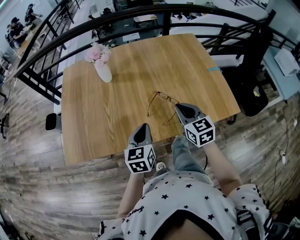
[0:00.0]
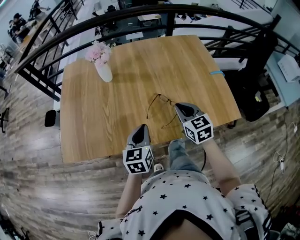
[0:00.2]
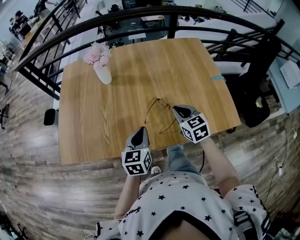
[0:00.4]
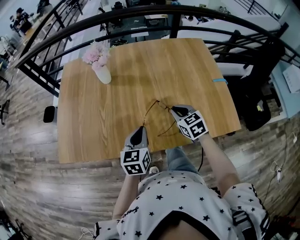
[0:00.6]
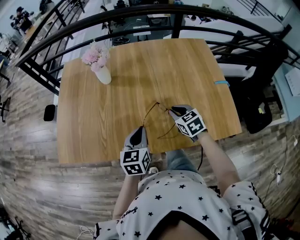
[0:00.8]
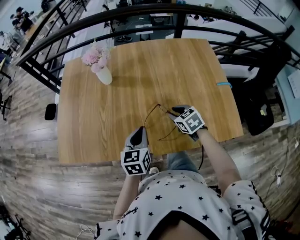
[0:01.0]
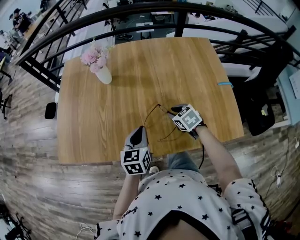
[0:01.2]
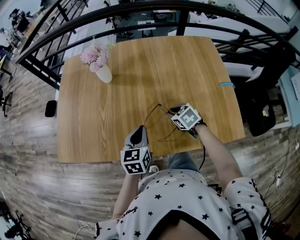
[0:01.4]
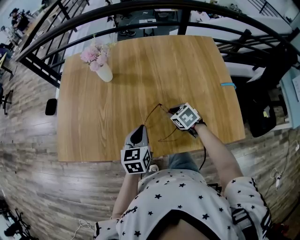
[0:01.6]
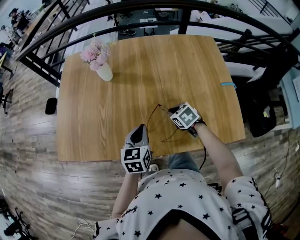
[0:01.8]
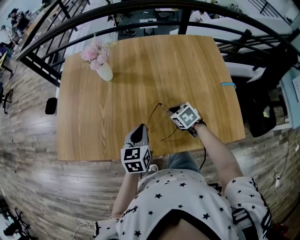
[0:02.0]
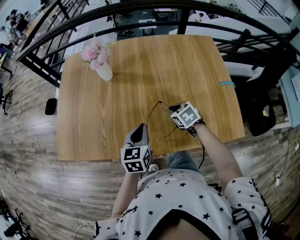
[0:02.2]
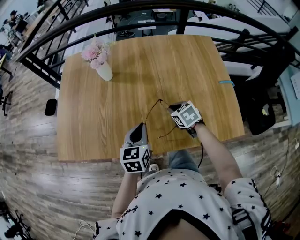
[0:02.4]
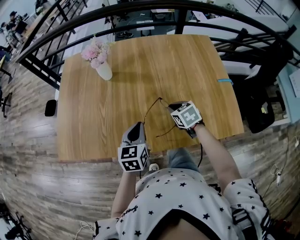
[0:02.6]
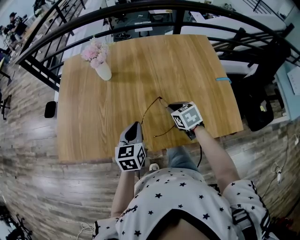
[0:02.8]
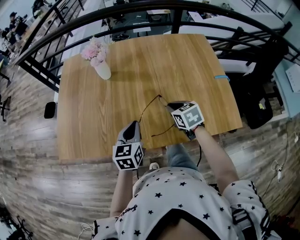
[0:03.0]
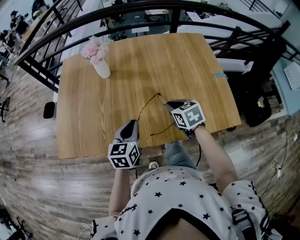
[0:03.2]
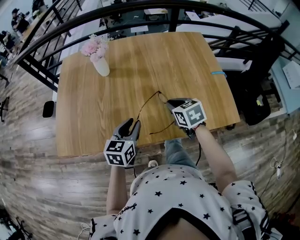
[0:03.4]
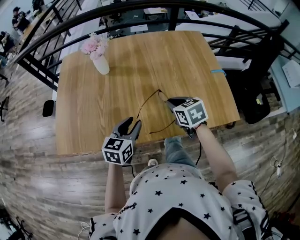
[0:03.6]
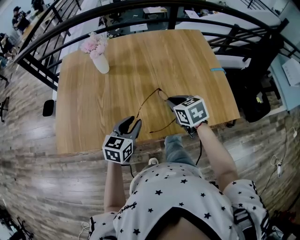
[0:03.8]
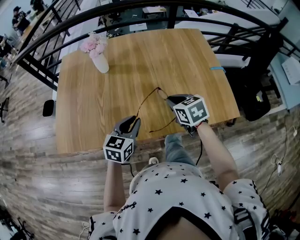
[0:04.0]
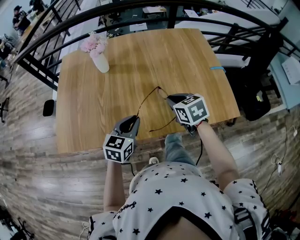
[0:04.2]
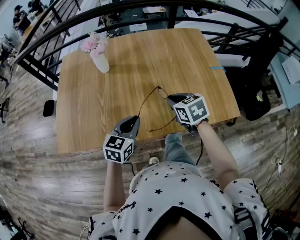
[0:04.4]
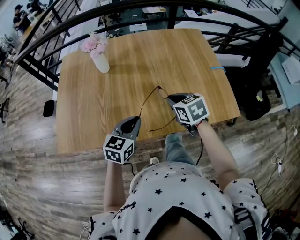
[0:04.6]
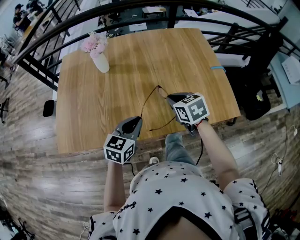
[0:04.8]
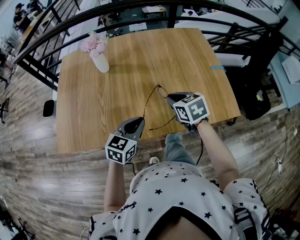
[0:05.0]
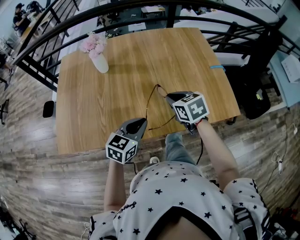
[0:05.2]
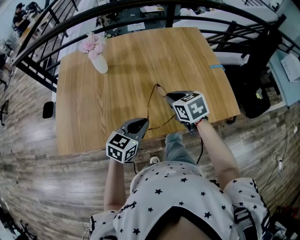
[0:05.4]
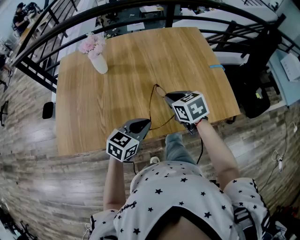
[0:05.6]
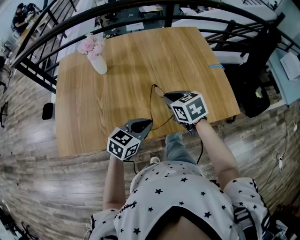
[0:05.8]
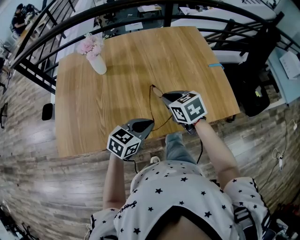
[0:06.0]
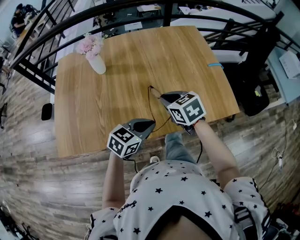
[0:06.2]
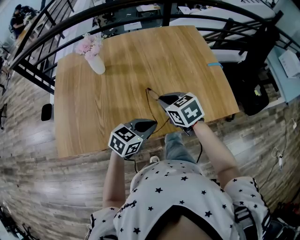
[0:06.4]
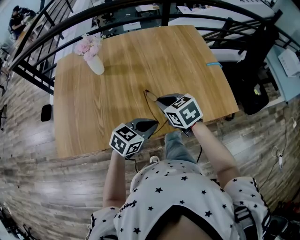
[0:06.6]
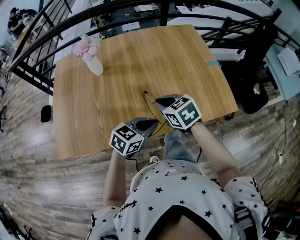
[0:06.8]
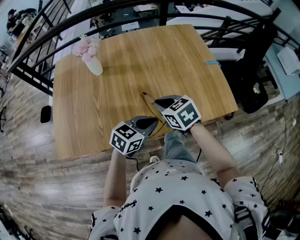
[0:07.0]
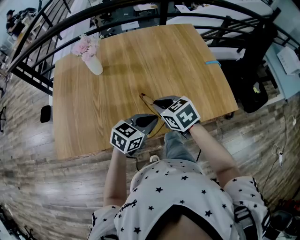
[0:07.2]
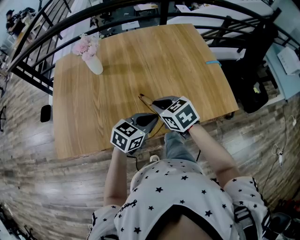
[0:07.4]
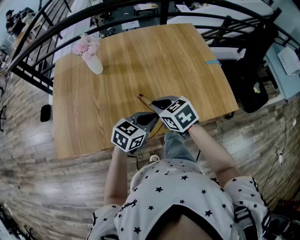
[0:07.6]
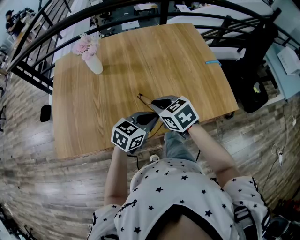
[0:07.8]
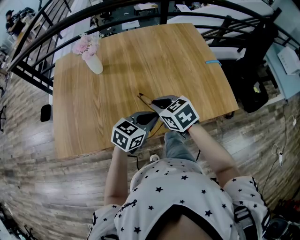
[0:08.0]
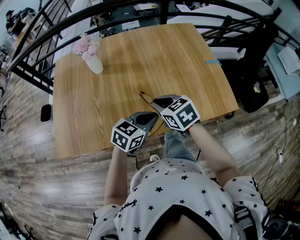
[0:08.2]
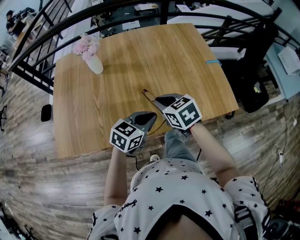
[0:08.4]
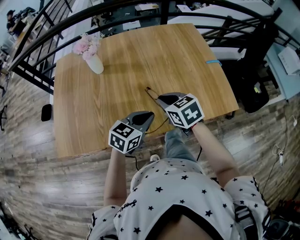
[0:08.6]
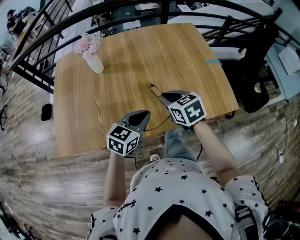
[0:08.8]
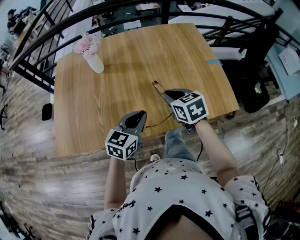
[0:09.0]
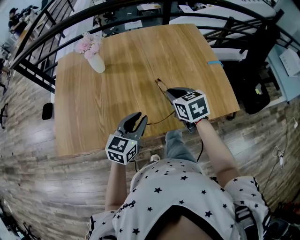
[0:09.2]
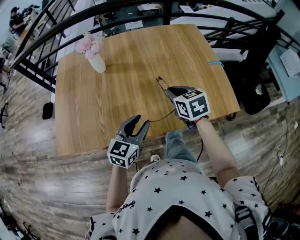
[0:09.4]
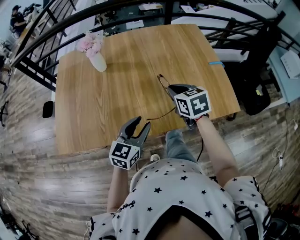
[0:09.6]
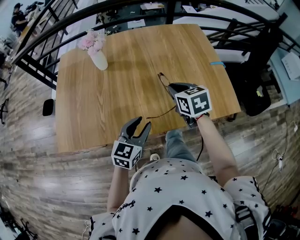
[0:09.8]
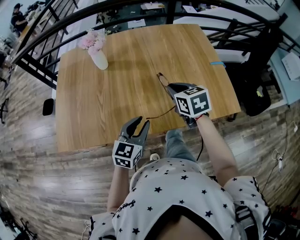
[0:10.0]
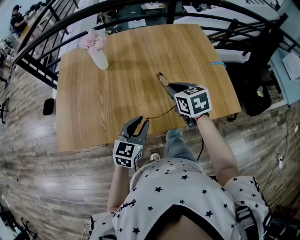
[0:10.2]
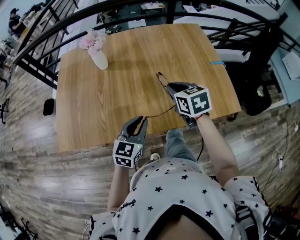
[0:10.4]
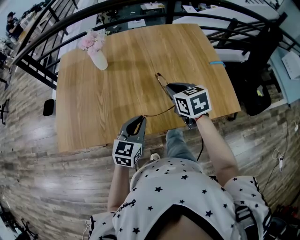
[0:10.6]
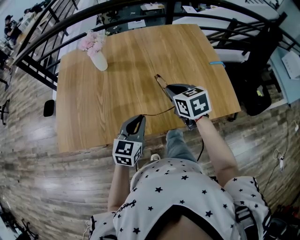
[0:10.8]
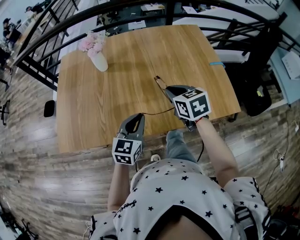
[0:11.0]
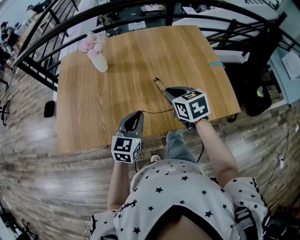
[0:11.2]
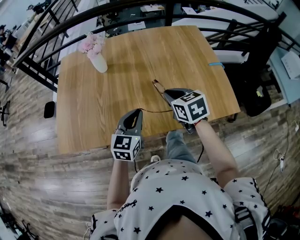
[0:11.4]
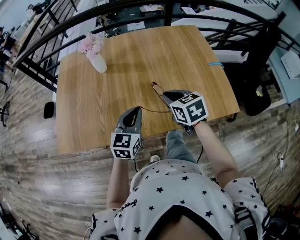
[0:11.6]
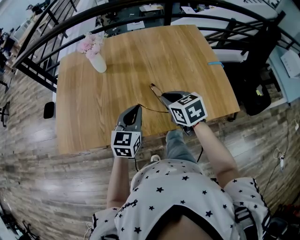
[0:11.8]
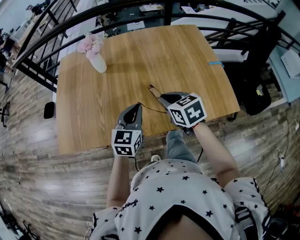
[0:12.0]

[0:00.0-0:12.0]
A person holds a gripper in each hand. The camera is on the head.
0:00.0 to 0:01.6: The right gripper is displaced downward and forward by about 20 cm, and angles its fingers downward, by approximately 30 degrees. Meanwhile the left gripper goes roughly 10 cm forward.
0:01.6 to 0:03.0: The right gripper goes some 10 cm upward.
0:03.0 to 0:04.4: The left gripper swivels approximately 20 degrees, and opens, then closes once more; the right gripper ends up approximately 5 cm from where it was.
0:04.4 to 0:06.0: The left gripper is displaced to the right by some 5 cm, and changes its angle by some 20 degrees.
0:06.0 to 0:07.6: The grippers move only a little.
0:07.6 to 0:09.0: The left gripper shifts some 5 cm to the left, while the right gripper travels to the right by some 5 cm.
0:09.0 to 0:10.4: The left gripper opens, then closes once more.
0:10.4 to 0:12.0: The left gripper moves forward, roughly 5 cm.

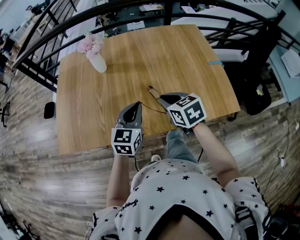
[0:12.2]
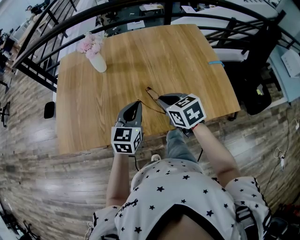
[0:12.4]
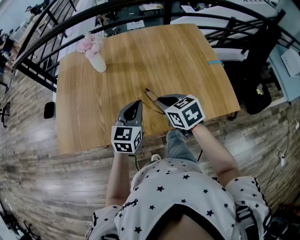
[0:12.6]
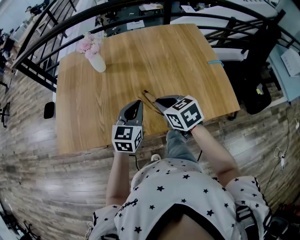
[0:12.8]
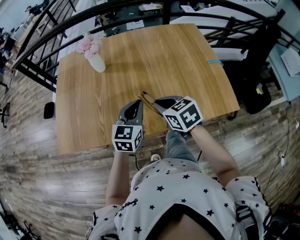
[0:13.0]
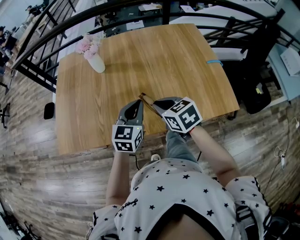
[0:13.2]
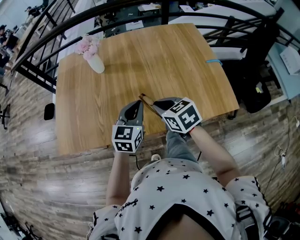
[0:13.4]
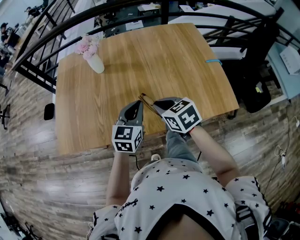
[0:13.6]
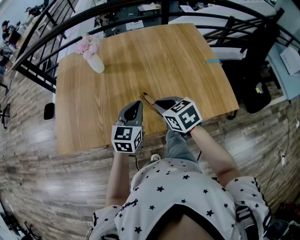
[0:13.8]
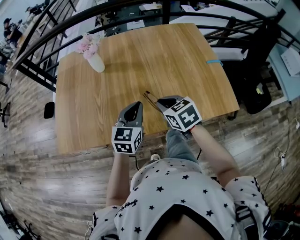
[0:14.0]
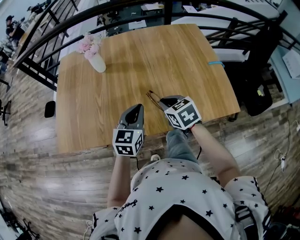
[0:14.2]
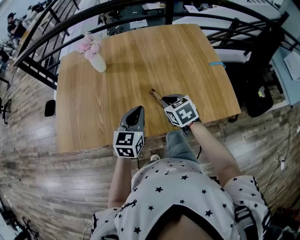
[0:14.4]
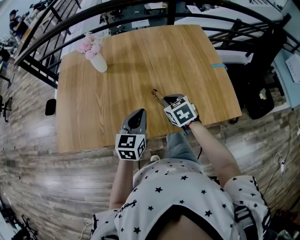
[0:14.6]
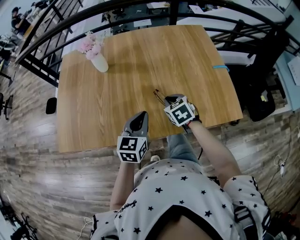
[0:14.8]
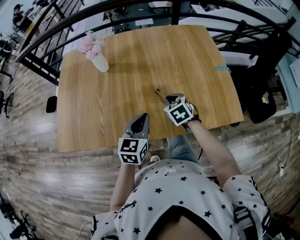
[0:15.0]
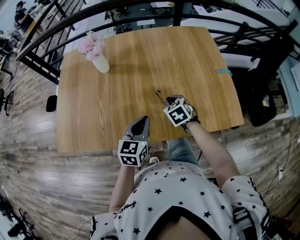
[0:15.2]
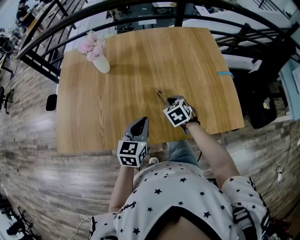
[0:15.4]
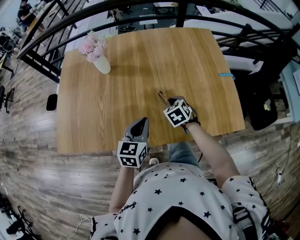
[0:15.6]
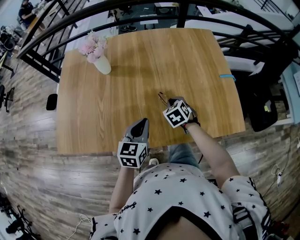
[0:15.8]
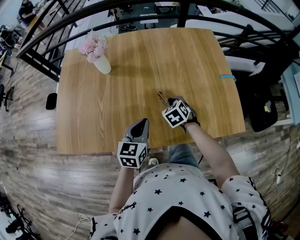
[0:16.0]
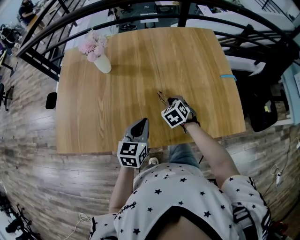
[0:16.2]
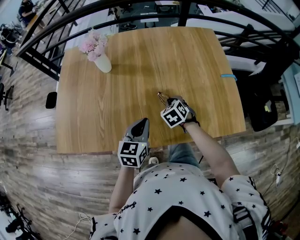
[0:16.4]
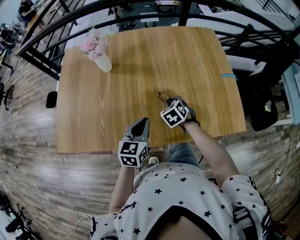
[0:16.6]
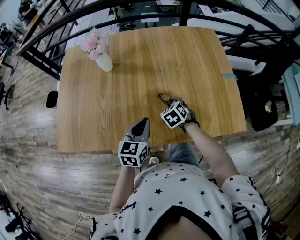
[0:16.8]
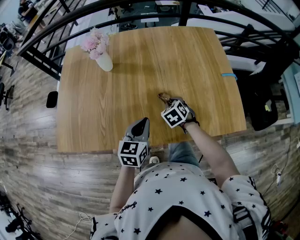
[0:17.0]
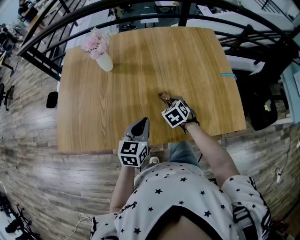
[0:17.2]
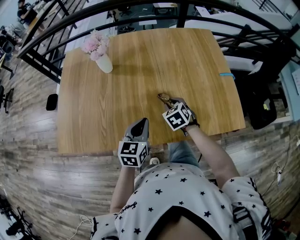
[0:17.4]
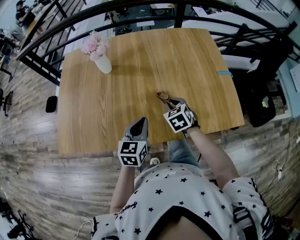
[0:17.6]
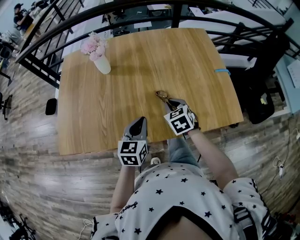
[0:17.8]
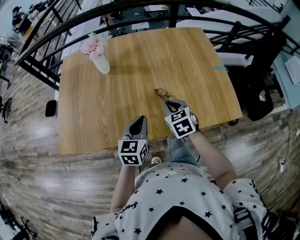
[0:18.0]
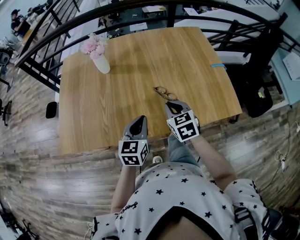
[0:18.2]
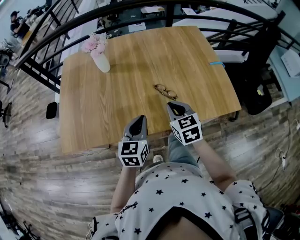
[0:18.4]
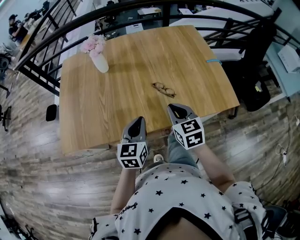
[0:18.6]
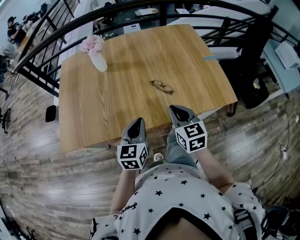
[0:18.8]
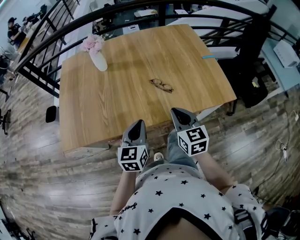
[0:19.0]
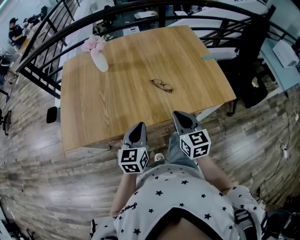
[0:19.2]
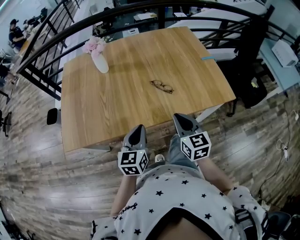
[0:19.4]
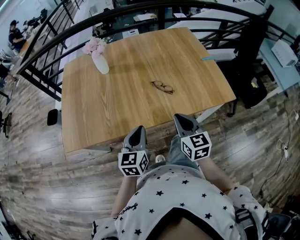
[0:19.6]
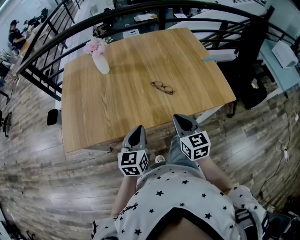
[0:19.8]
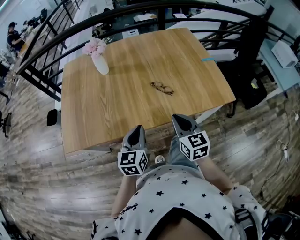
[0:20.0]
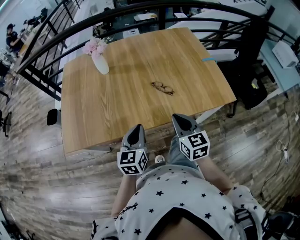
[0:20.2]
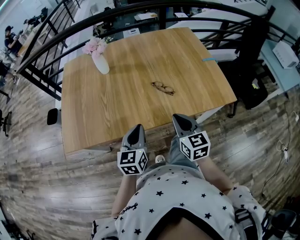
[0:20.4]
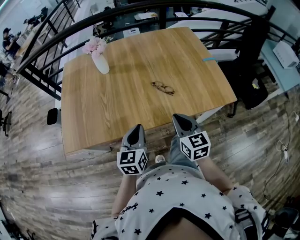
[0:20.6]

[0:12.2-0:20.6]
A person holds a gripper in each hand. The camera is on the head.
0:12.2 to 0:13.6: The grippers stay close to where they were, moving slightly.
0:13.6 to 0:15.0: The right gripper shifts about 15 cm downward, forward and to the right, and changes its angle by approximately 20 degrees.
0:15.0 to 0:16.4: The right gripper shifts by roughly 5 cm.
0:16.4 to 0:17.8: The right gripper heads upward and backward, covering some 10 cm.
0:17.8 to 0:19.2: The left gripper travels backward by some 10 cm. The right gripper travels backward and upward by about 20 cm, and turns by roughly 30 degrees.
0:19.2 to 0:20.6: The grippers stay close to where they were, moving slightly.

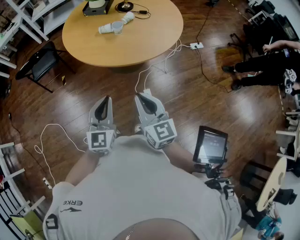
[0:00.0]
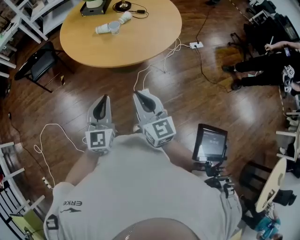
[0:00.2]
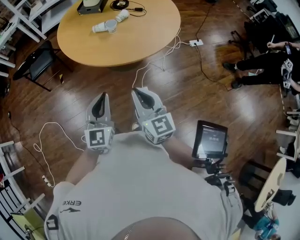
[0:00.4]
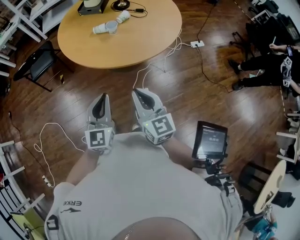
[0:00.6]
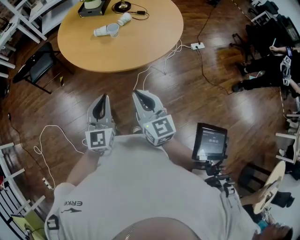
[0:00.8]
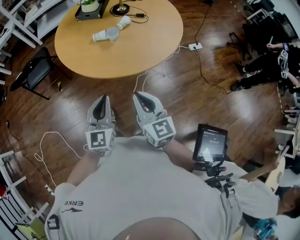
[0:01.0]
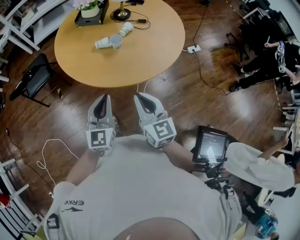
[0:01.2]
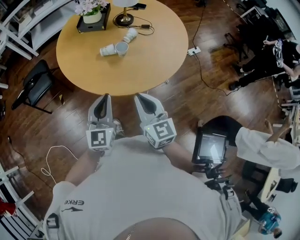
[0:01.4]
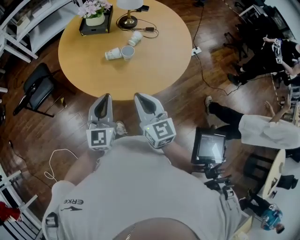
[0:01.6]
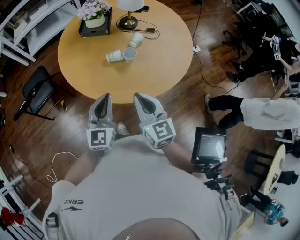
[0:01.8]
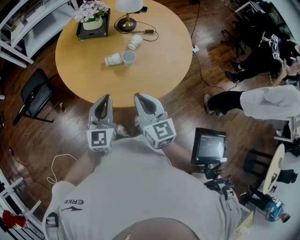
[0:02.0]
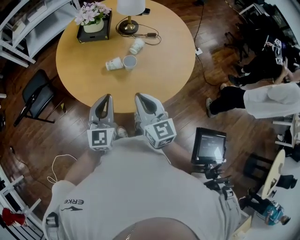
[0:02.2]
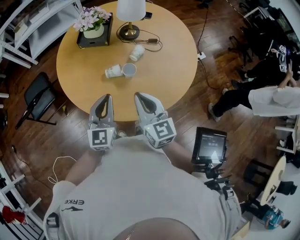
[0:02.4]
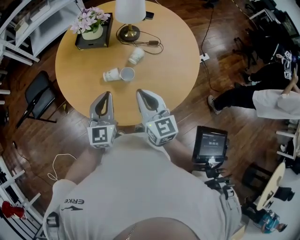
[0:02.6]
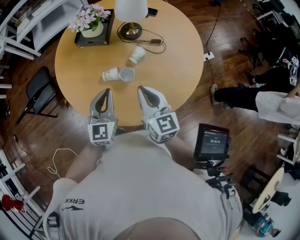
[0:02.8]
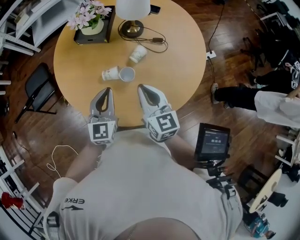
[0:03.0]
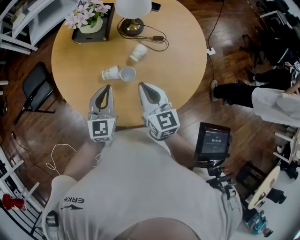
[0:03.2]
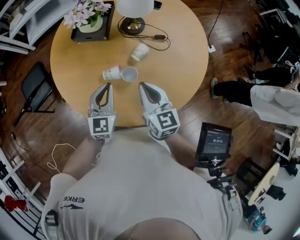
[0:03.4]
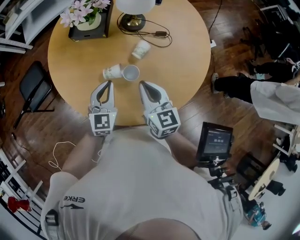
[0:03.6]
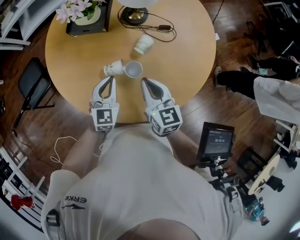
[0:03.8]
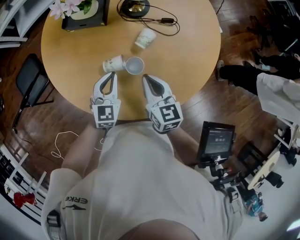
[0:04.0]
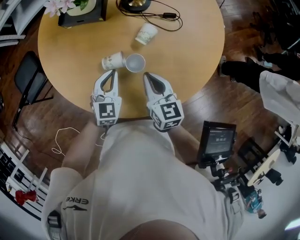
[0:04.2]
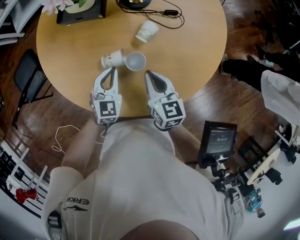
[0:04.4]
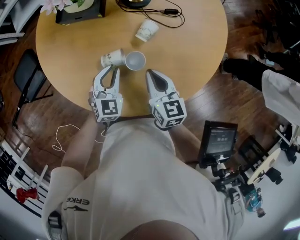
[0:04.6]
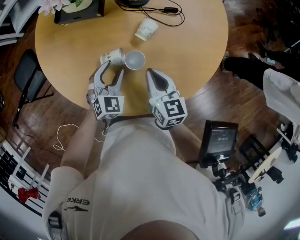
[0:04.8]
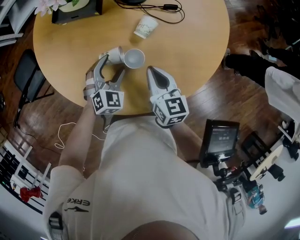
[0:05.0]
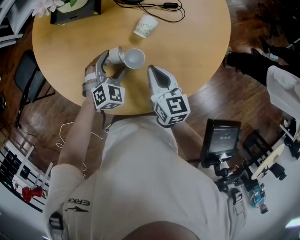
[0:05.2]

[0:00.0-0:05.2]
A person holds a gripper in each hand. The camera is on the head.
0:00.0 to 0:01.8: The two grippers go about 25 cm forward.
0:01.8 to 0:03.4: The grippers both shift forward by about 20 cm.
0:03.4 to 0:05.2: Both grippers move downward, some 15 cm. The left gripper points its fingers some 30 degrees further downward, and opens up.
